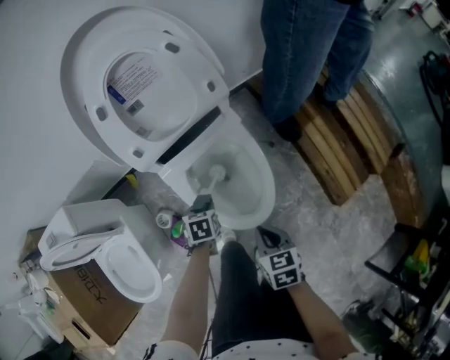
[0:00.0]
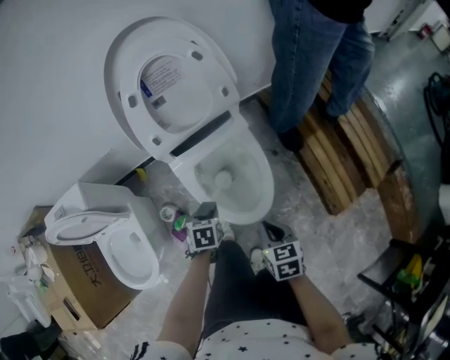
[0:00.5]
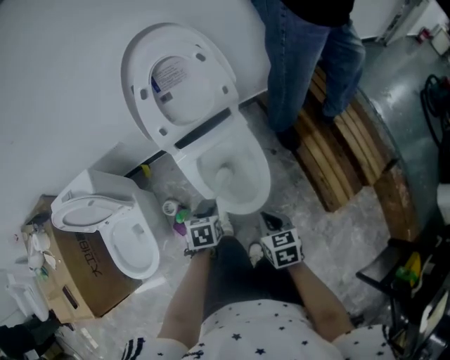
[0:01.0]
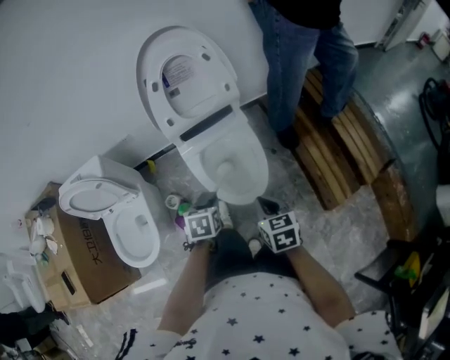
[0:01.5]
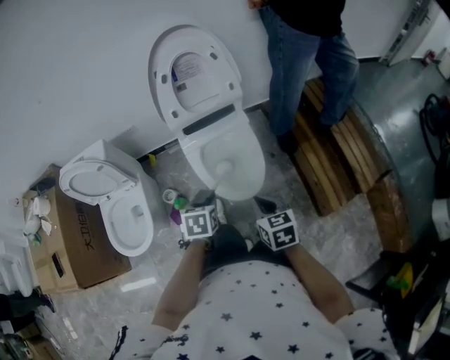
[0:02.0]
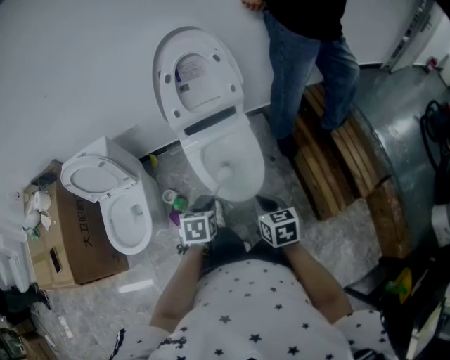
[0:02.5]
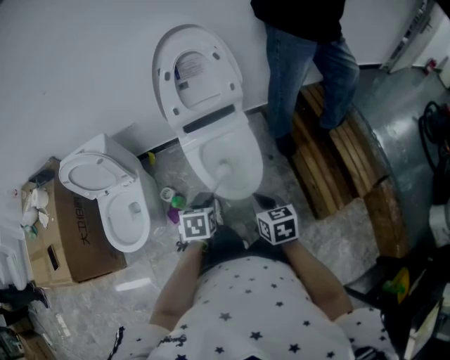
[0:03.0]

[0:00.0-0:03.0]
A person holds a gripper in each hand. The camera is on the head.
0:00.0 to 0:01.5: The right gripper is displaced upward and backward by approximately 15 cm; the left gripper travels upward and backward by about 25 cm.
0:01.5 to 0:03.0: The left gripper travels backward by about 5 cm.

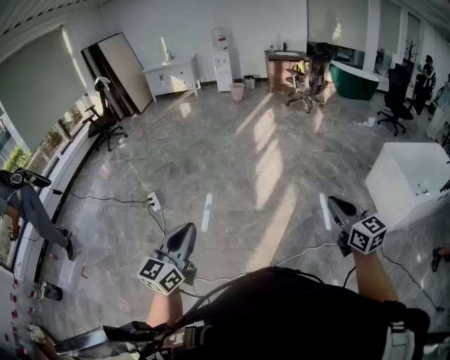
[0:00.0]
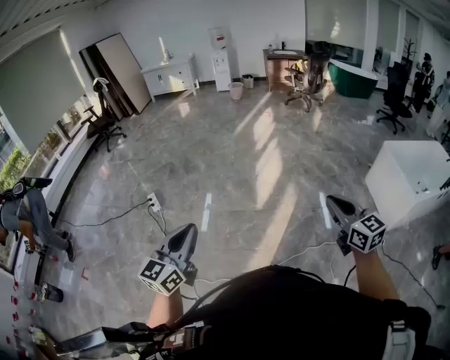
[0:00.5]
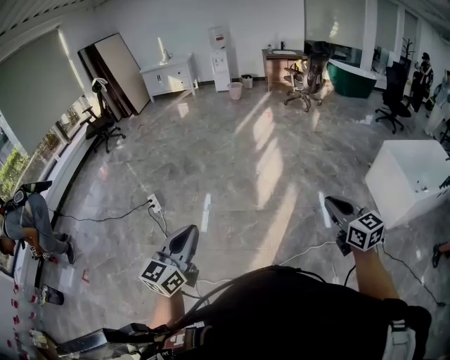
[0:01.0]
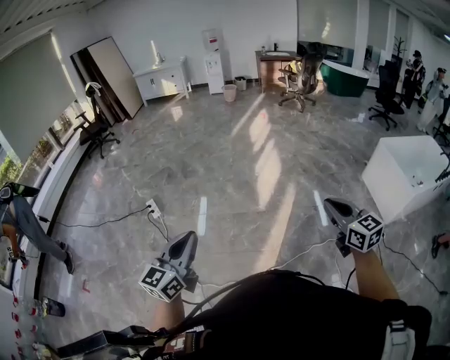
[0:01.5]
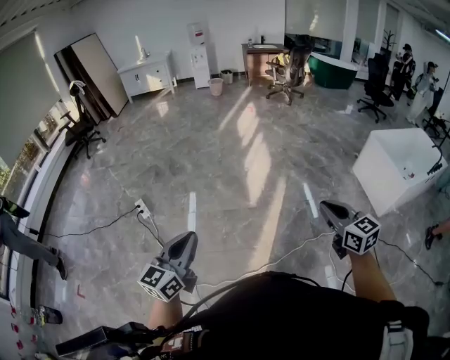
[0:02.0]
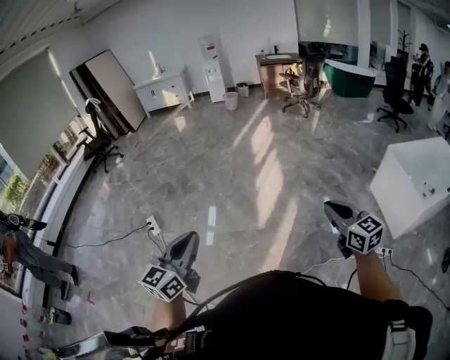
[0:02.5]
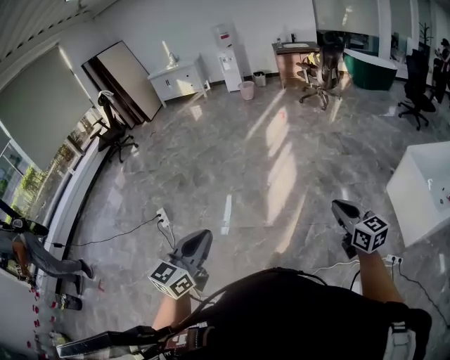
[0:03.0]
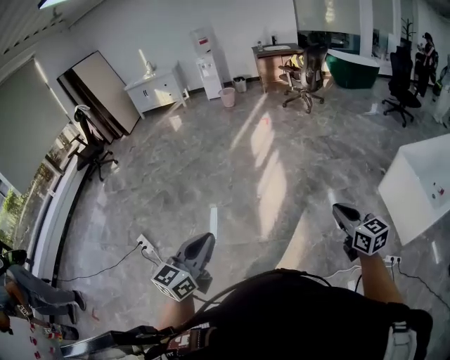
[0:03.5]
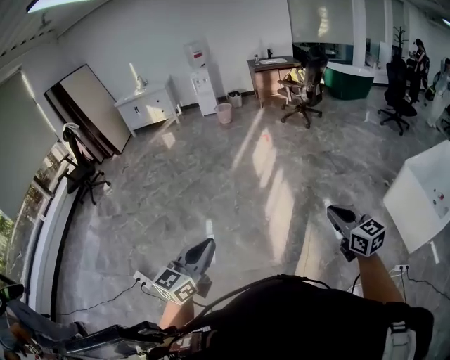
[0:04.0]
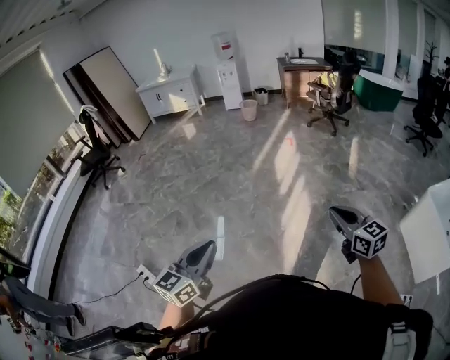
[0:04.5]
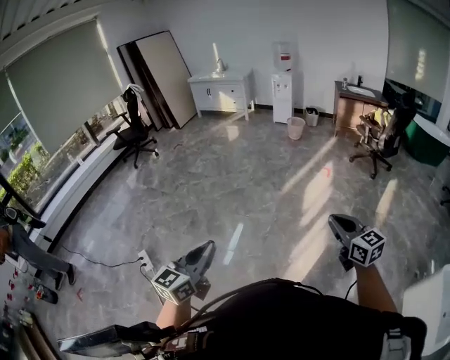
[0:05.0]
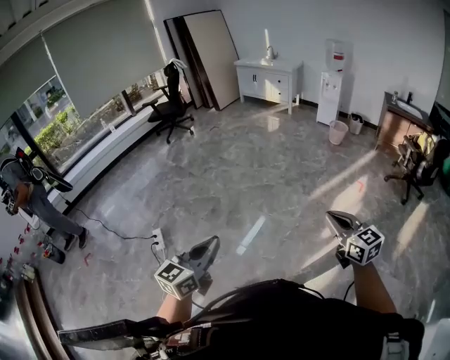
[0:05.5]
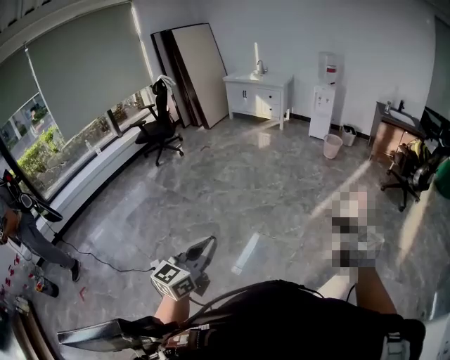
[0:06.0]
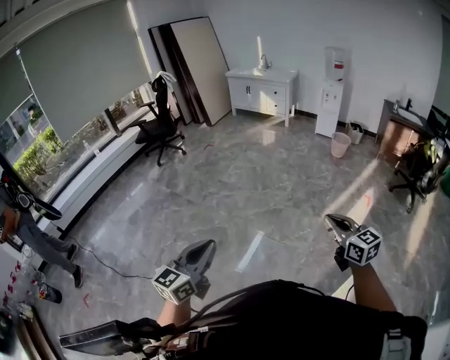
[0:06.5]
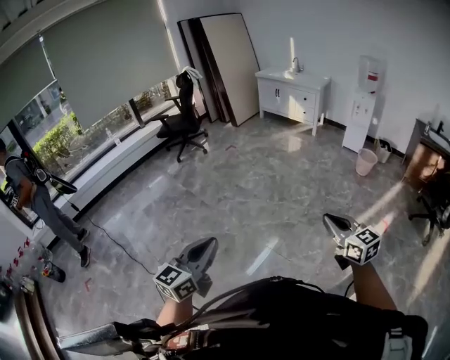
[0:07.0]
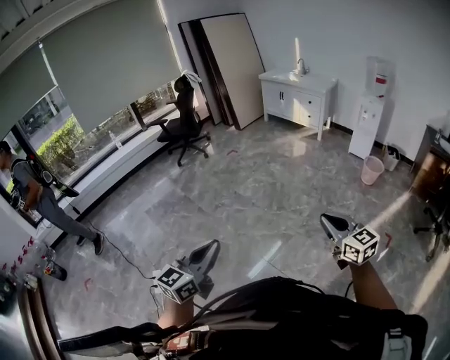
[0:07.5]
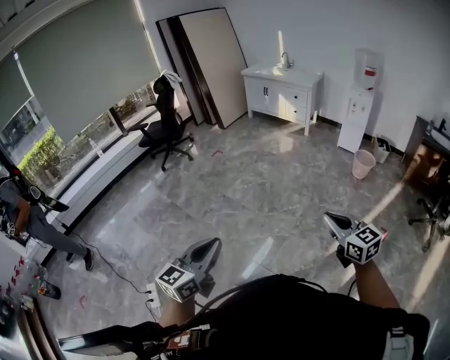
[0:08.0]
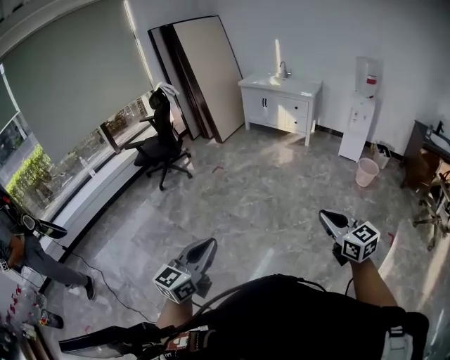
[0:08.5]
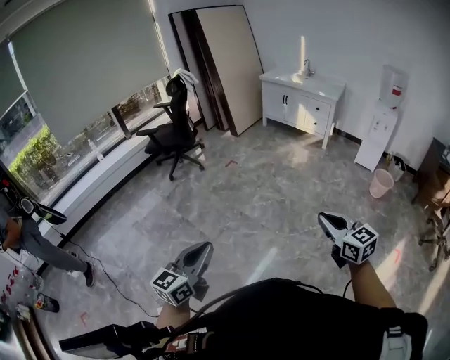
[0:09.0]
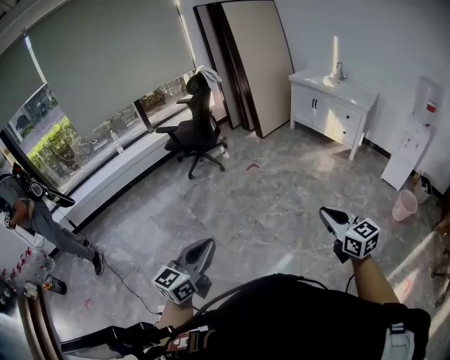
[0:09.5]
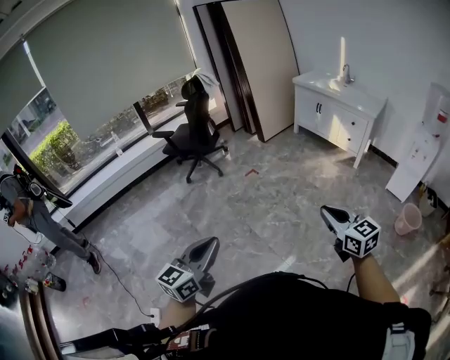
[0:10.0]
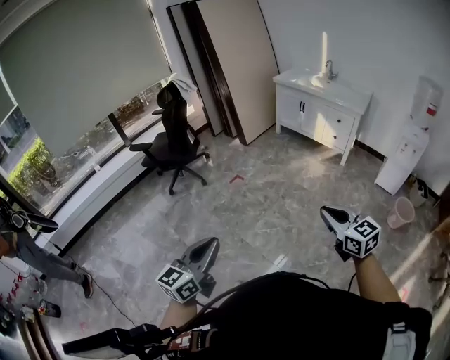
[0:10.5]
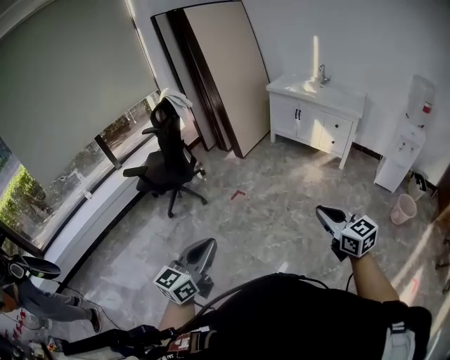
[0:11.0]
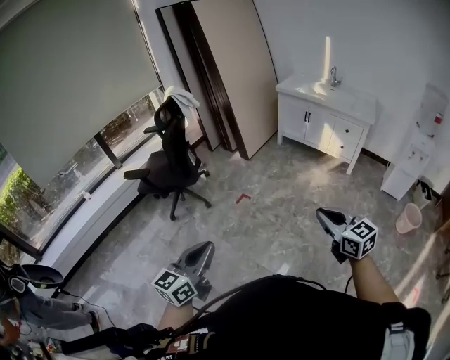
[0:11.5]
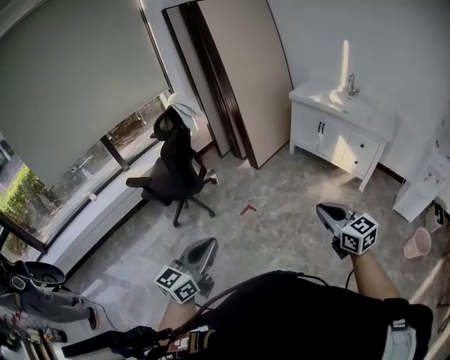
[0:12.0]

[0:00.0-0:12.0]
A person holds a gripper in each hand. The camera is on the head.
0:00.0 to 0:02.0: The right gripper moves to the left, roughly 10 cm, while the left gripper travels to the left and forward by approximately 10 cm.
0:02.0 to 0:04.0: Both grippers are carried forward, roughly 50 cm.
0:04.0 to 0:06.0: Both grippers are carried about 60 cm. The right gripper swivels approximately 40 degrees. Meanwhile the left gripper rotates roughly 30 degrees.
0:06.0 to 0:08.0: Both grippers are carried forward, roughly 50 cm.
0:08.0 to 0:10.0: Both grippers are carried forward, approximately 60 cm.
0:10.0 to 0:12.0: The pair of grippers is taken forward, some 50 cm.

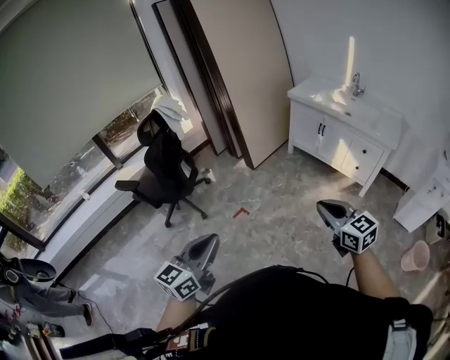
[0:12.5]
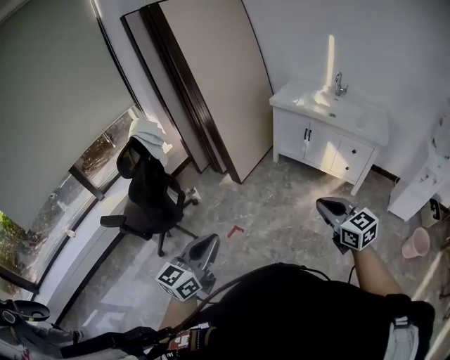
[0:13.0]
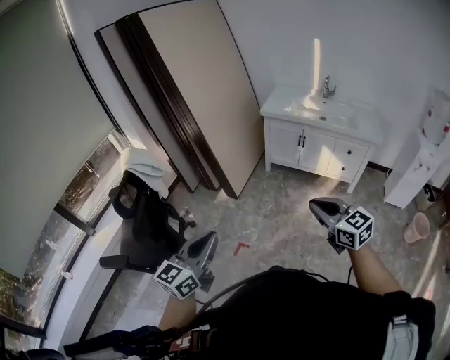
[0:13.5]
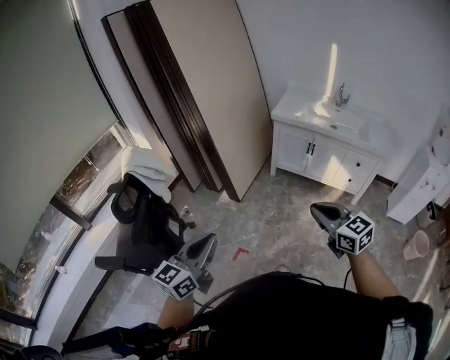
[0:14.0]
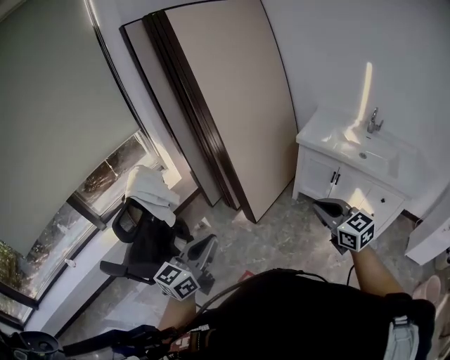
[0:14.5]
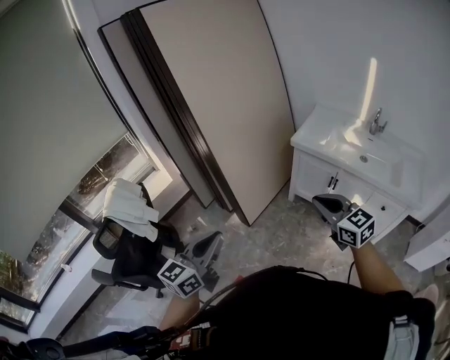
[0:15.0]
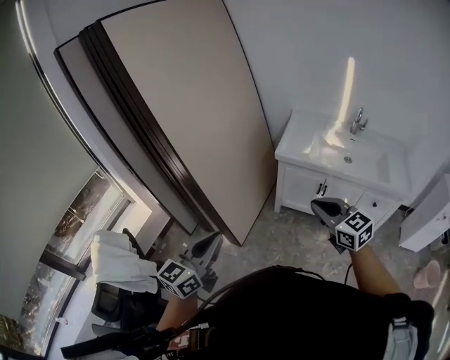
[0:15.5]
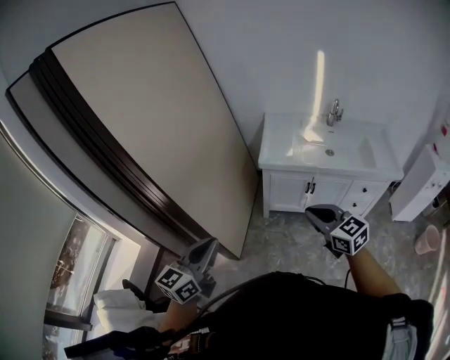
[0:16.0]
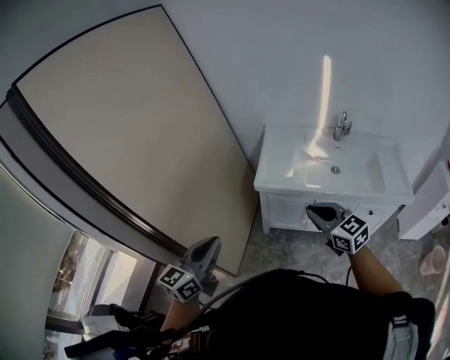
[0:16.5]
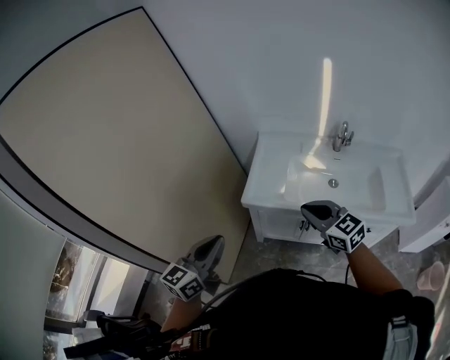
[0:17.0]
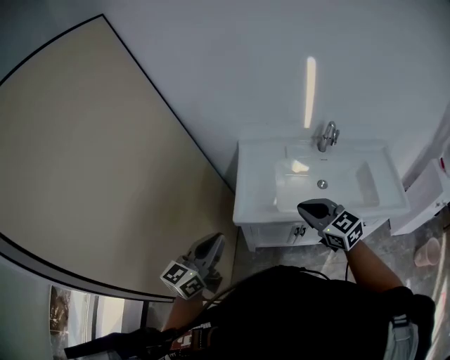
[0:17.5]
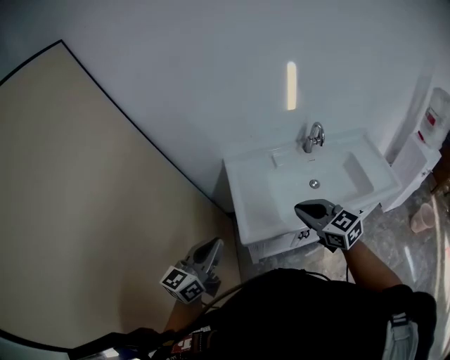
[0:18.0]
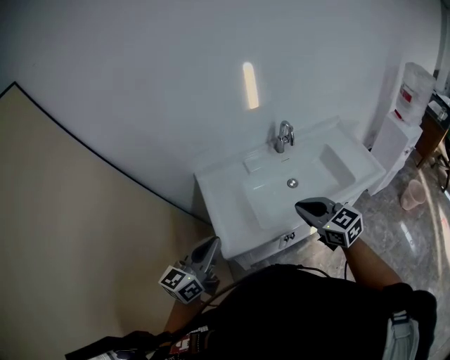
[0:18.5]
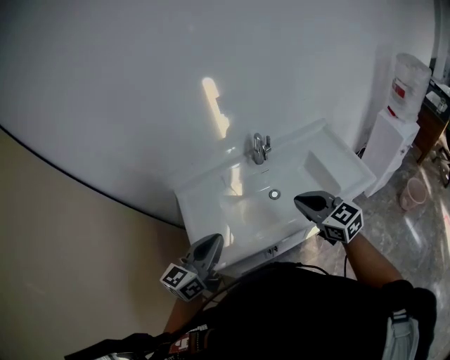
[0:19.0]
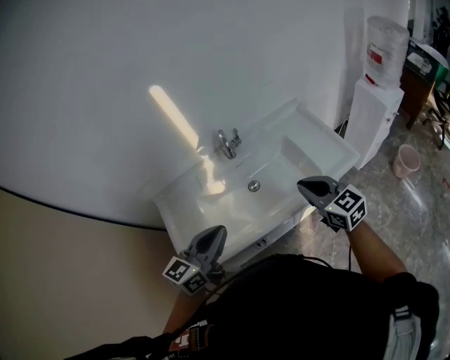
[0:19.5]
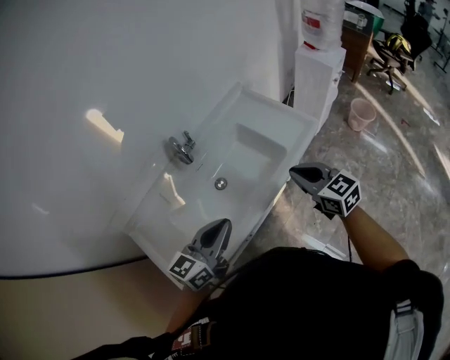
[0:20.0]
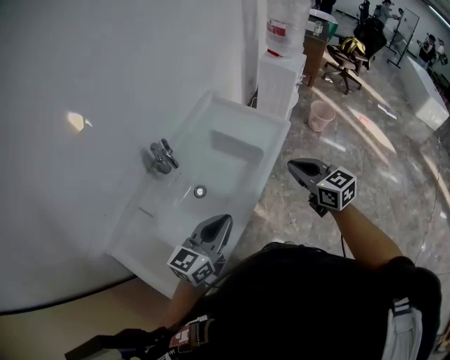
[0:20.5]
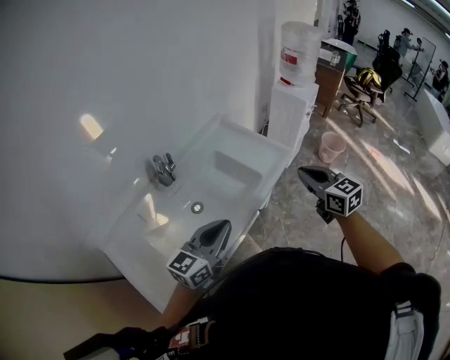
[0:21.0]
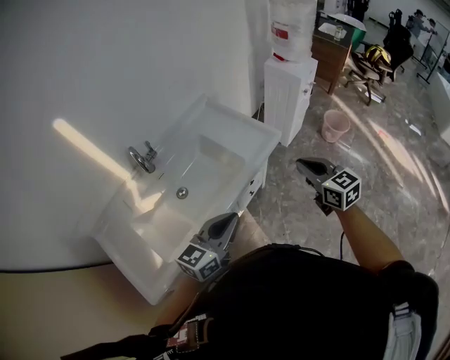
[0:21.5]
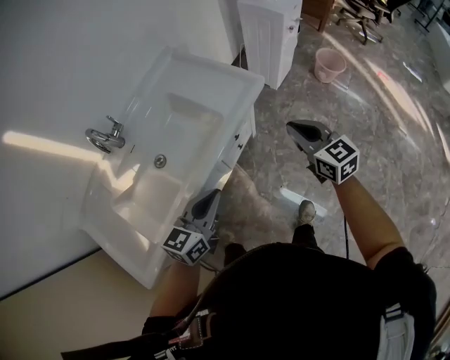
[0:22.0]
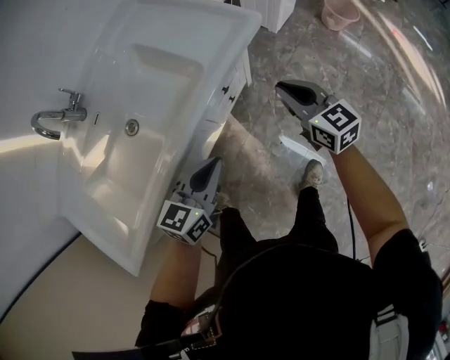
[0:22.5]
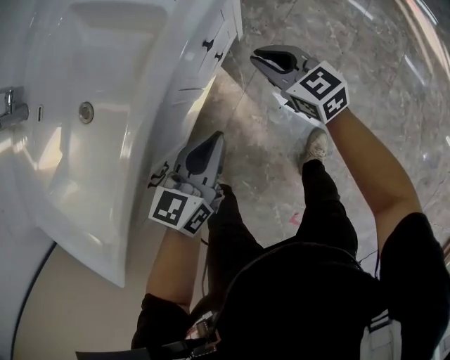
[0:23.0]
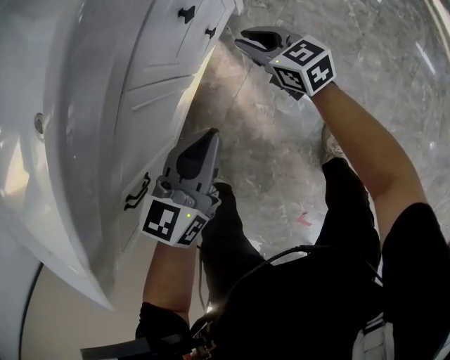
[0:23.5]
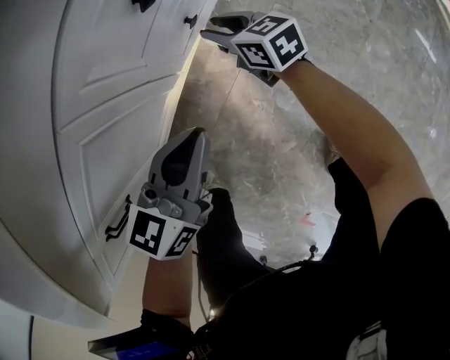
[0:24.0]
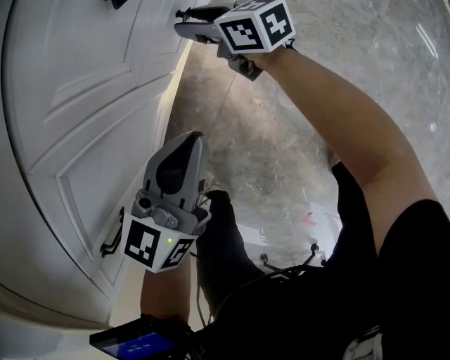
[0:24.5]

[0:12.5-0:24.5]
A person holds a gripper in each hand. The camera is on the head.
0:12.5 to 0:14.5: Both grippers are carried forward, roughly 50 cm.
0:14.5 to 0:16.5: The two grippers travel together, forward, about 50 cm. The left gripper rotates some 30 degrees, while the right gripper changes its angle by roughly 20 degrees.
0:16.5 to 0:18.5: The right gripper shifts by approximately 30 cm, and rotates about 30 degrees. Meanwhile the left gripper shifts by roughly 40 cm, and swivels about 30 degrees.
0:18.5 to 0:20.5: The right gripper ends up some 35 cm from where it was, and swivels approximately 50 degrees. Meanwhile the left gripper ends up approximately 35 cm from where it was, and turns by about 40 degrees.
0:20.5 to 0:22.5: The left gripper travels downward and to the right by roughly 35 cm, and turns by approximately 20 degrees. The right gripper heads downward, to the right and forward, covering approximately 35 cm.
0:22.5 to 0:24.5: The grippers both shift downward by roughly 50 cm. The right gripper turns by some 30 degrees, and opens its fingers.
